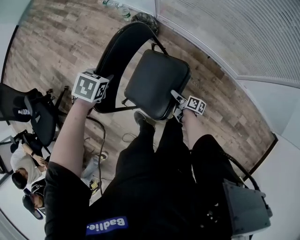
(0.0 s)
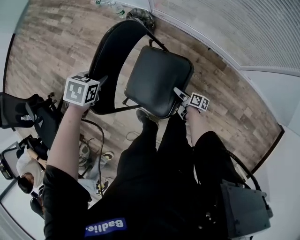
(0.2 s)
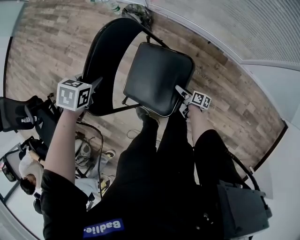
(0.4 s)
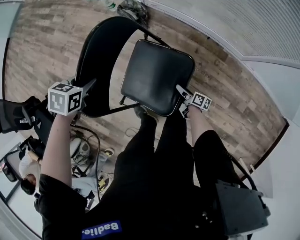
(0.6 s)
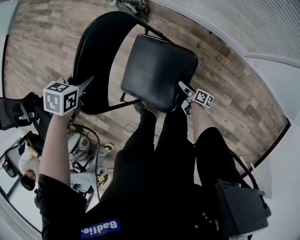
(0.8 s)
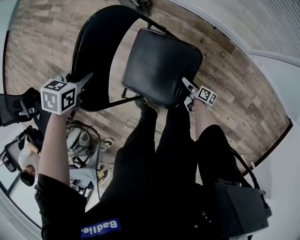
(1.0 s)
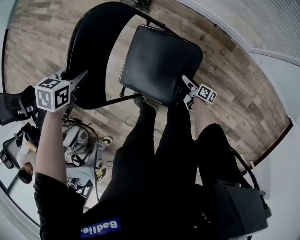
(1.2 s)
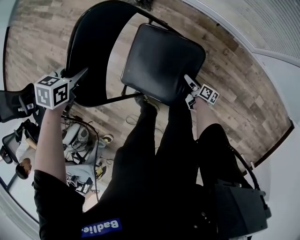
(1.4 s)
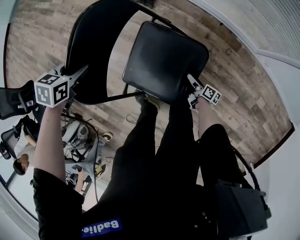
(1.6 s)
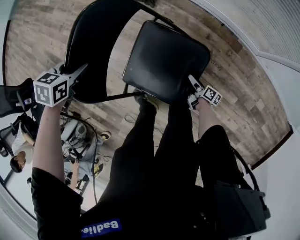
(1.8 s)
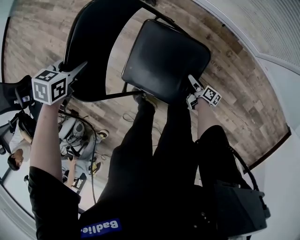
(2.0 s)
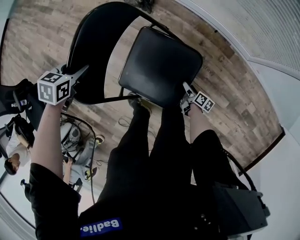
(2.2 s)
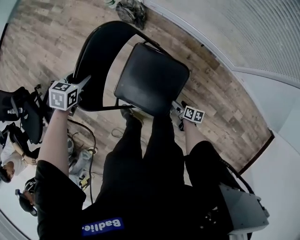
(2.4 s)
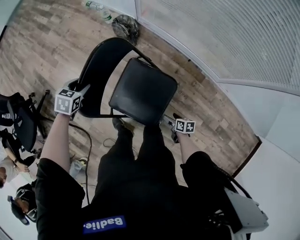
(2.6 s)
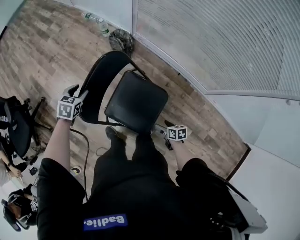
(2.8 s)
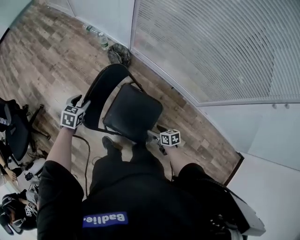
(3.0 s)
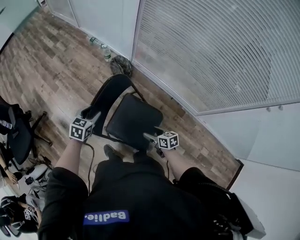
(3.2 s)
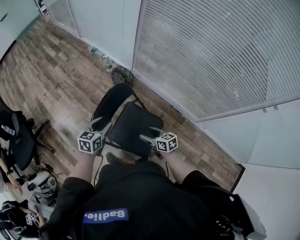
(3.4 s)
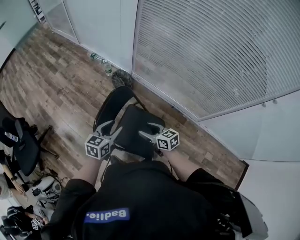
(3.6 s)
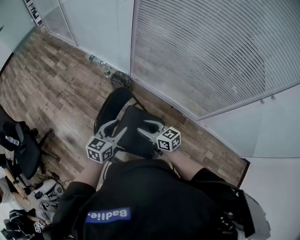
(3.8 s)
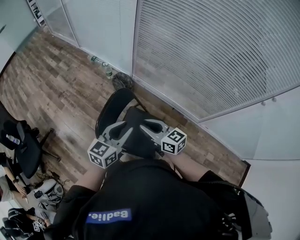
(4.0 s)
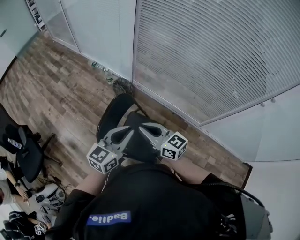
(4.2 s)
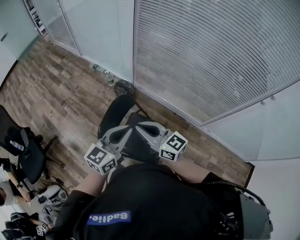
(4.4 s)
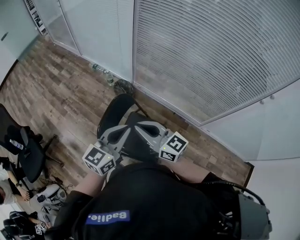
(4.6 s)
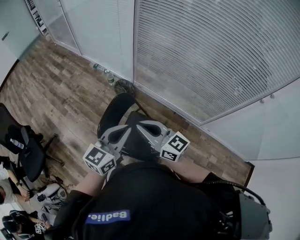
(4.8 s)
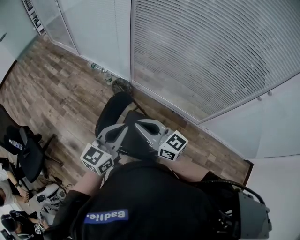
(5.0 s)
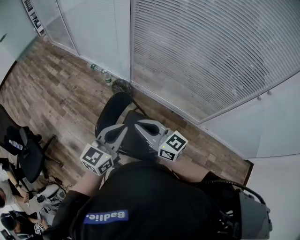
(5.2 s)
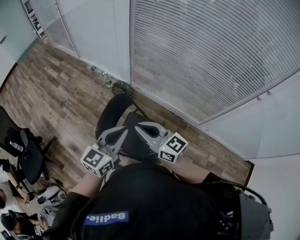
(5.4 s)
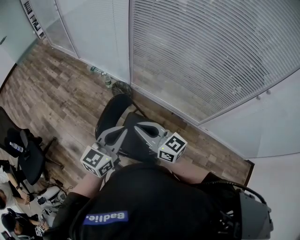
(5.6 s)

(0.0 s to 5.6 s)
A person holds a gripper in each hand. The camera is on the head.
0.0 s - 1.4 s: The left gripper is displaced downward by about 10 cm. Meanwhile the right gripper shifts approximately 25 cm downward and to the right.
1.4 s - 2.8 s: The right gripper goes approximately 20 cm upward, and swivels some 50 degrees. The left gripper moves upward, about 5 cm.
2.8 s - 4.2 s: The right gripper heads upward, covering approximately 50 cm, tilts its fingers roughly 40 degrees upward, and closes its fingers; the left gripper shifts approximately 40 cm upward, to the right and backward, tilts its fingers some 50 degrees upward, and closes.
4.2 s - 5.6 s: The left gripper changes place by approximately 5 cm. Meanwhile the right gripper shifts some 5 cm upward.

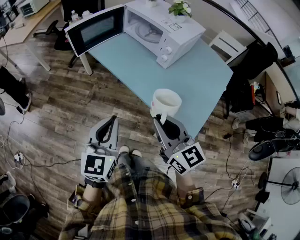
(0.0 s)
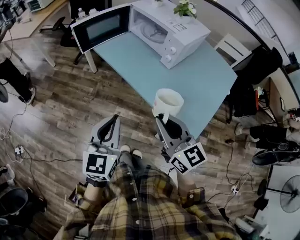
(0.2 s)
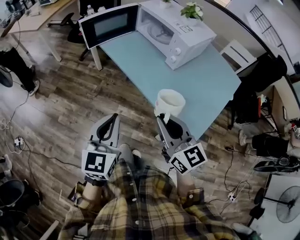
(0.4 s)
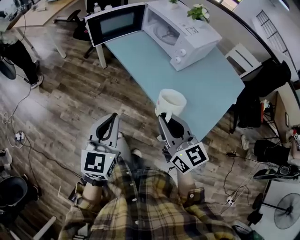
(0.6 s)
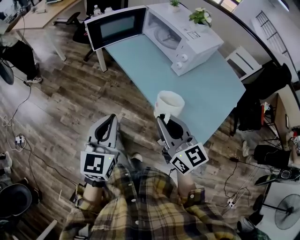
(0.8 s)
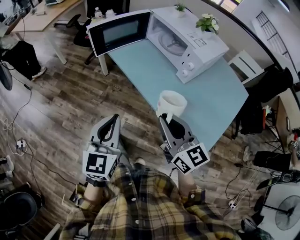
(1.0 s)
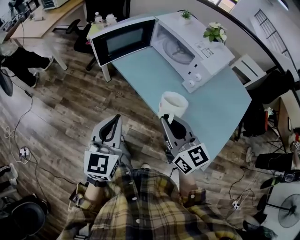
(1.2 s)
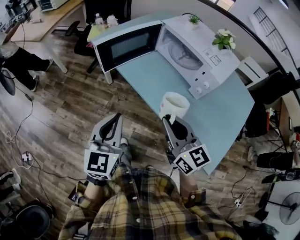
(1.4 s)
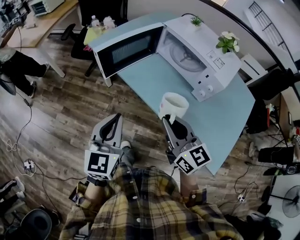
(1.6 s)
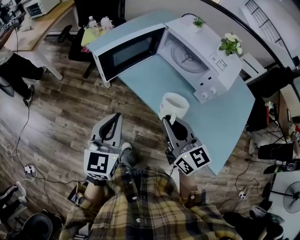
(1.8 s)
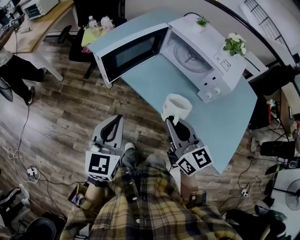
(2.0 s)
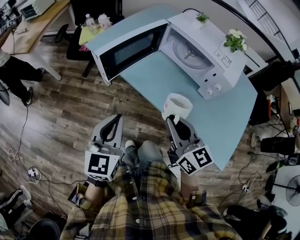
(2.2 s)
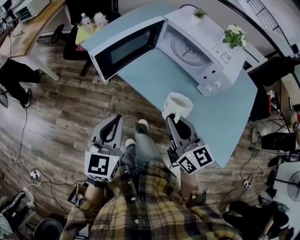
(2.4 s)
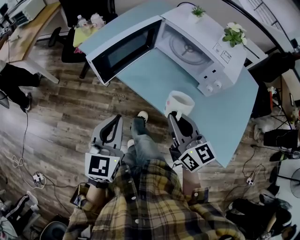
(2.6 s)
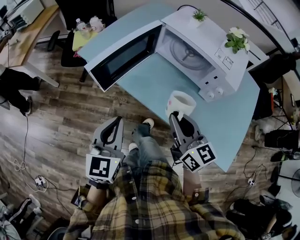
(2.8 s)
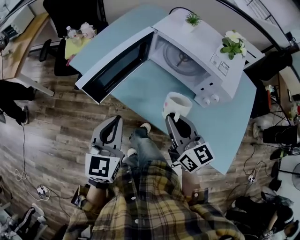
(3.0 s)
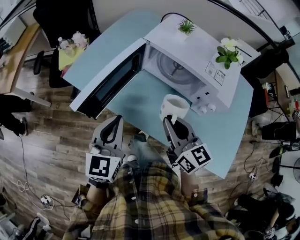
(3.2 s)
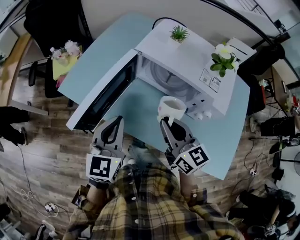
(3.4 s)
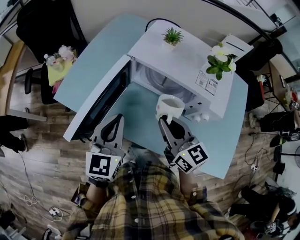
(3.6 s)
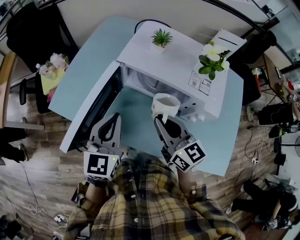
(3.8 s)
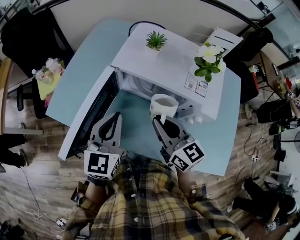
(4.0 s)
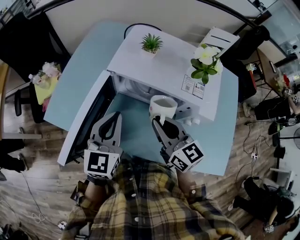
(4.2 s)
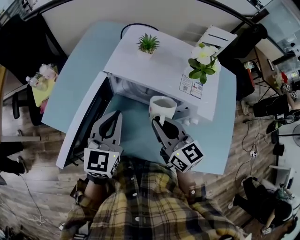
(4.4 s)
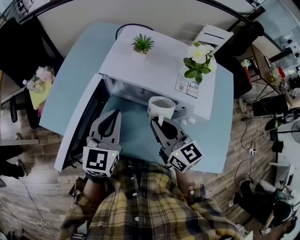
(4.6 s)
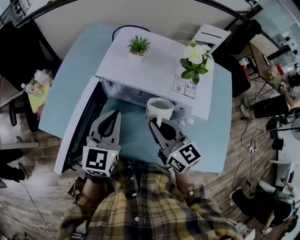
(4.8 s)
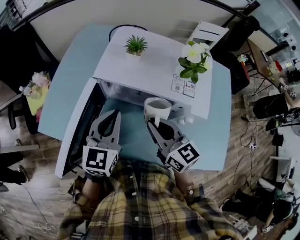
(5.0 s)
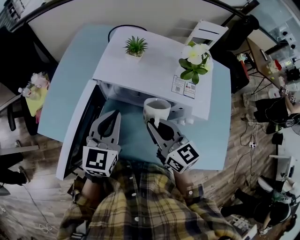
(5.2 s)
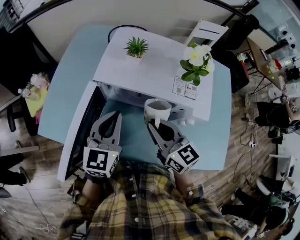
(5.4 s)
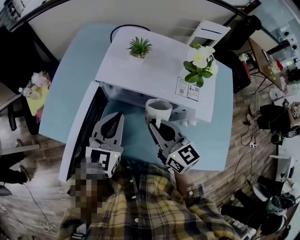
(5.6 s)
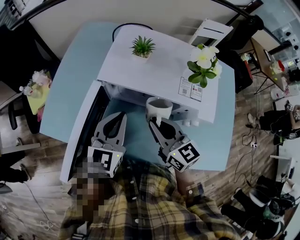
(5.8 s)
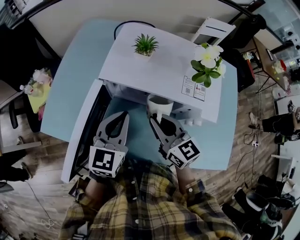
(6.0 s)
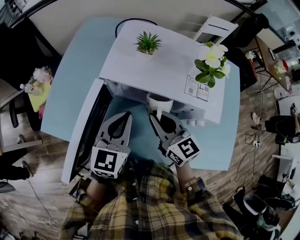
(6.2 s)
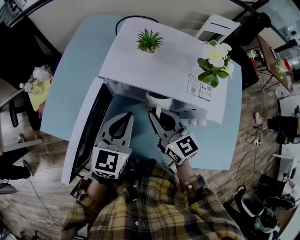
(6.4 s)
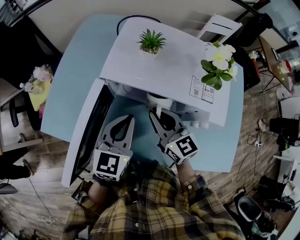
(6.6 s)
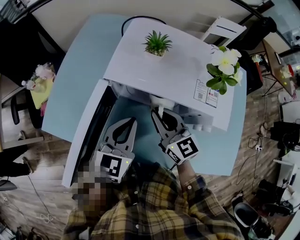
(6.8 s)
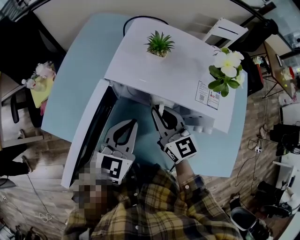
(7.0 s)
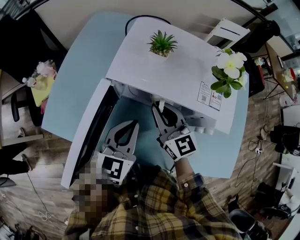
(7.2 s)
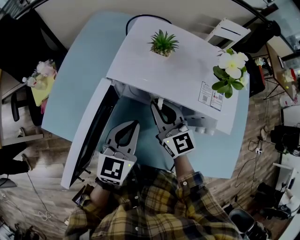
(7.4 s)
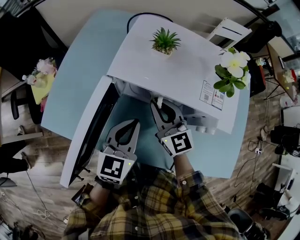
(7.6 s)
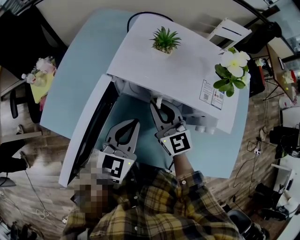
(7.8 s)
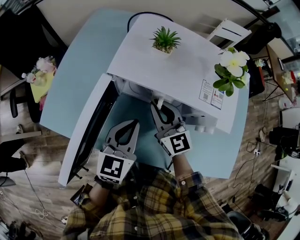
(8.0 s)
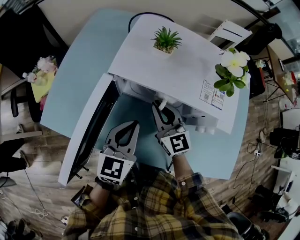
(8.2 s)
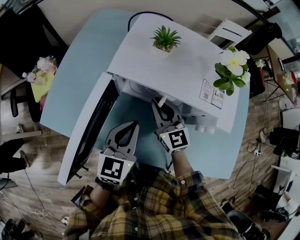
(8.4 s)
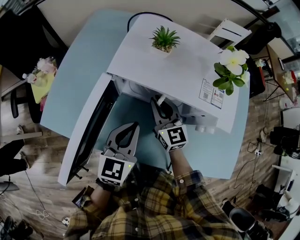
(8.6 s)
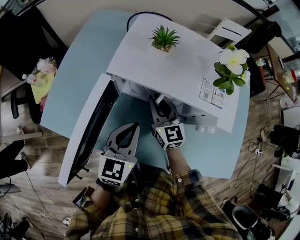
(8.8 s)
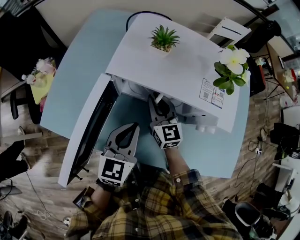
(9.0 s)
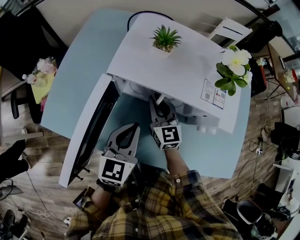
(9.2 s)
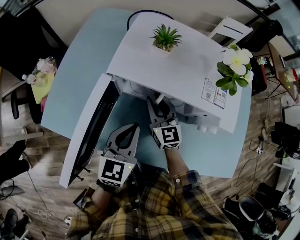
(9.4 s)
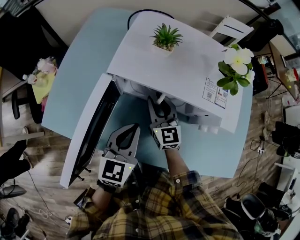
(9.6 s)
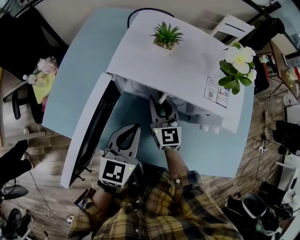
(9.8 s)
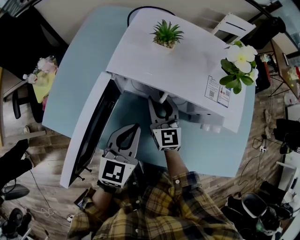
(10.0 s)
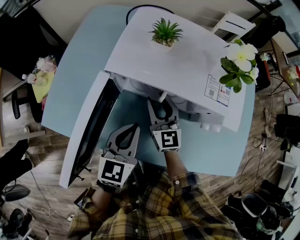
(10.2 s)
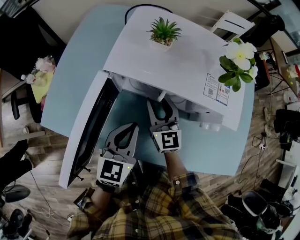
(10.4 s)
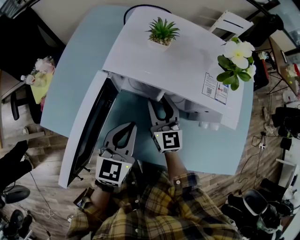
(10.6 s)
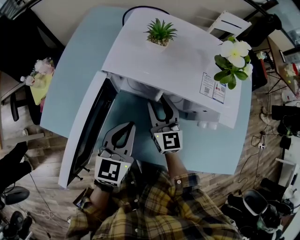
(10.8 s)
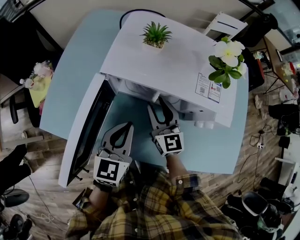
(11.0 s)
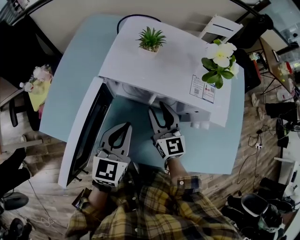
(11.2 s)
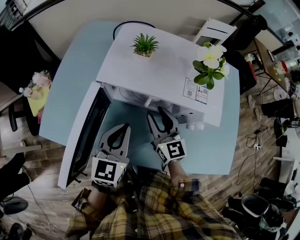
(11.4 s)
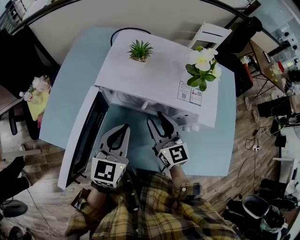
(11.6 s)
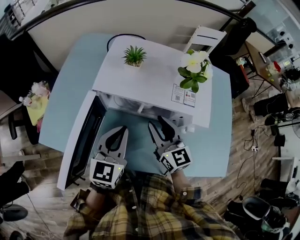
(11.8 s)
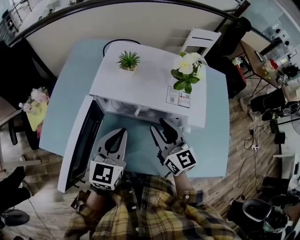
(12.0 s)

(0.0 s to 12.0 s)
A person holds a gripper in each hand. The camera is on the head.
0.0 s - 1.6 s: Both grippers move forward and to the left, some 25 cm.
1.6 s - 3.0 s: Both grippers travel together forward, approximately 15 cm.
3.0 s - 4.4 s: The left gripper travels forward and to the right by approximately 25 cm. The right gripper heads forward, covering some 15 cm.
4.4 s - 6.0 s: There are only small adjustments of the grippers.
6.0 s - 7.6 s: The right gripper is displaced forward by about 5 cm.
7.6 s - 9.0 s: The right gripper shifts roughly 5 cm downward.
9.0 s - 10.4 s: The right gripper opens its fingers.
10.4 s - 12.0 s: The right gripper heads upward, to the right and backward, covering about 15 cm. Meanwhile the left gripper moves upward, some 5 cm.

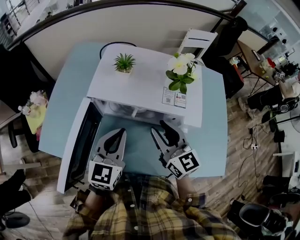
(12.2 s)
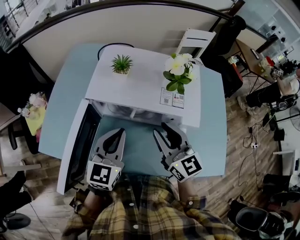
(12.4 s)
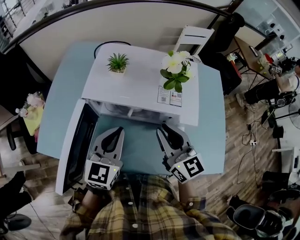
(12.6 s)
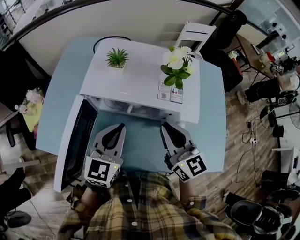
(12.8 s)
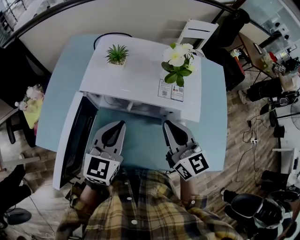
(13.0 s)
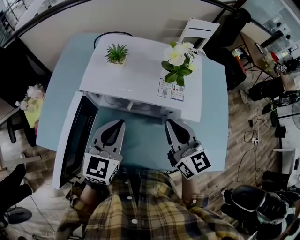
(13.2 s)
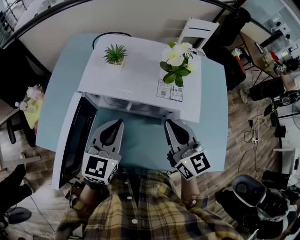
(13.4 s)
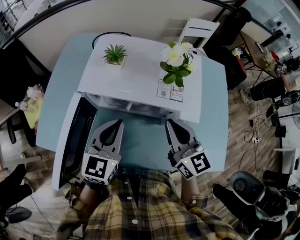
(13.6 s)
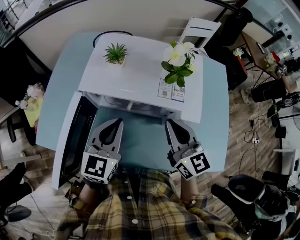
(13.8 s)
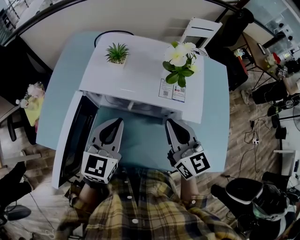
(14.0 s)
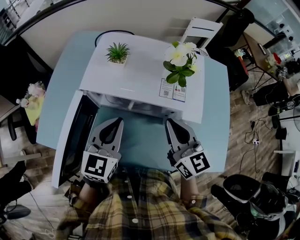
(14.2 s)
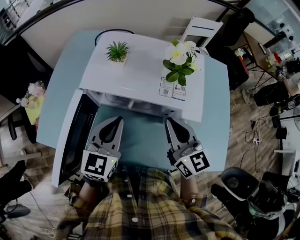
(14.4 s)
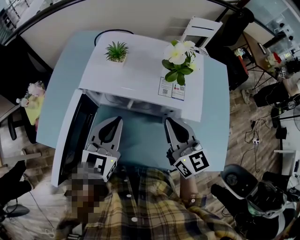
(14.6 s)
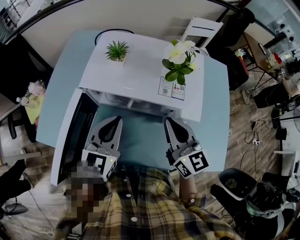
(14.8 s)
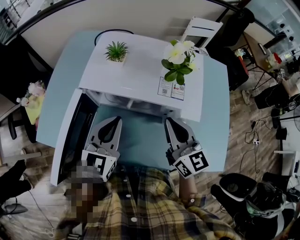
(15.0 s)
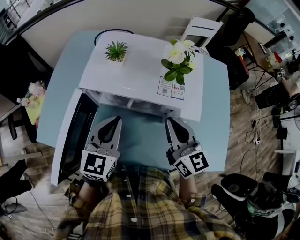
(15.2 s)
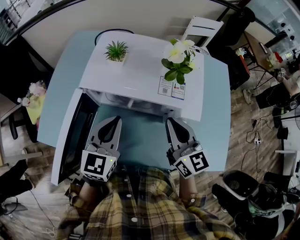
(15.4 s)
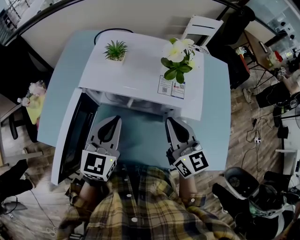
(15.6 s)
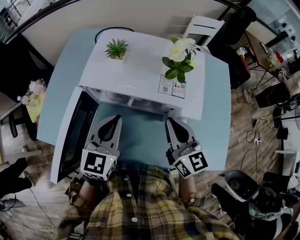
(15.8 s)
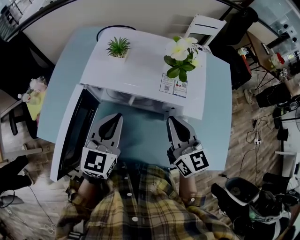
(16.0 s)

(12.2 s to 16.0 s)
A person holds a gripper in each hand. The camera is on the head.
12.2 s - 13.4 s: The right gripper shifts by roughly 5 cm, and closes up.
13.4 s - 14.8 s: Neither gripper changes place.
14.8 s - 16.0 s: The two grippers keep their place.

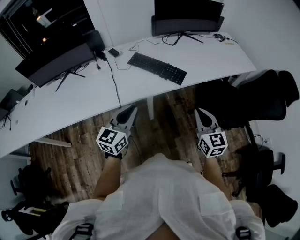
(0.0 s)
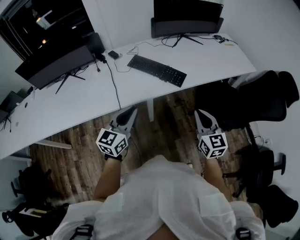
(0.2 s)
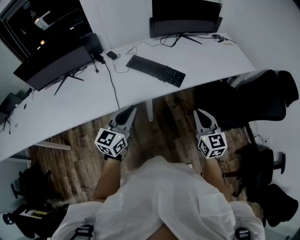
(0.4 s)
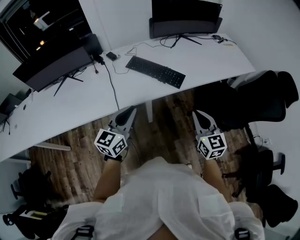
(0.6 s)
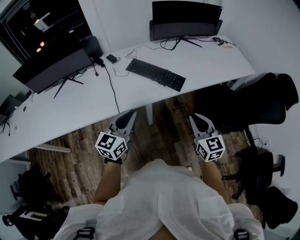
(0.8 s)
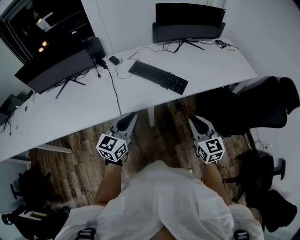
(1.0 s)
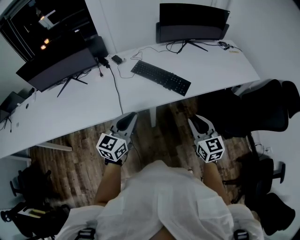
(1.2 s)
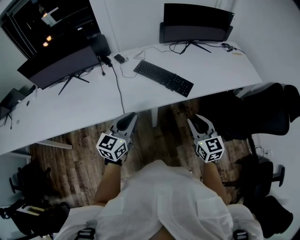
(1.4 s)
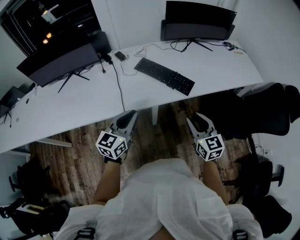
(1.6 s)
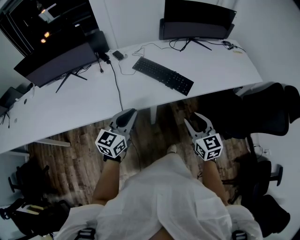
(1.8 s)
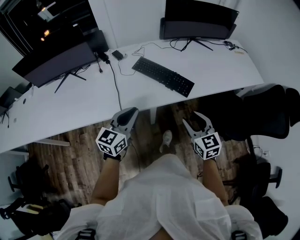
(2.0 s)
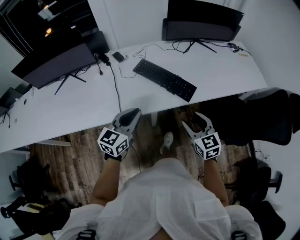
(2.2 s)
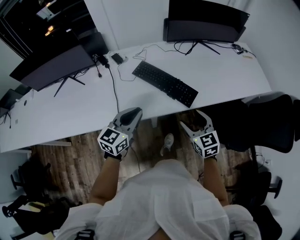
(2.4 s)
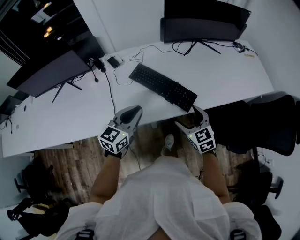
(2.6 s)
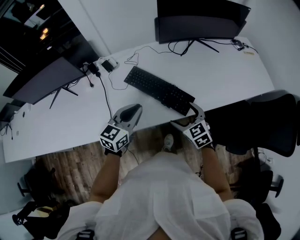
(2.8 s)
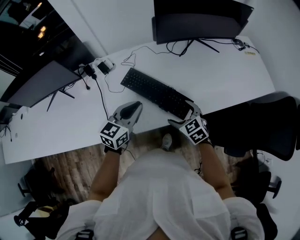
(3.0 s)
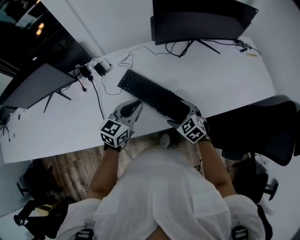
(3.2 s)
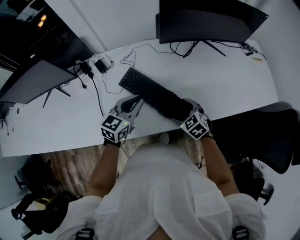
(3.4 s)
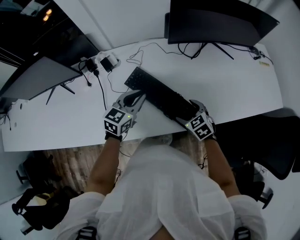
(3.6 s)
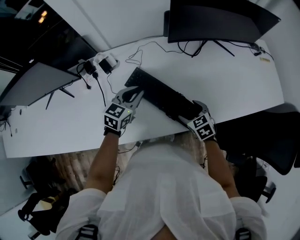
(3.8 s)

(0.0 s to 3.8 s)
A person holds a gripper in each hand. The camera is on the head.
0.0 s - 1.2 s: The right gripper moves about 5 cm.
1.2 s - 2.6 s: The right gripper goes about 20 cm forward and downward, changes its angle by about 20 degrees, and opens up; the left gripper travels forward by about 20 cm.
2.6 s - 3.8 s: The right gripper moves forward and downward, some 20 cm, and swivels some 20 degrees; the left gripper heads forward, covering roughly 25 cm.
